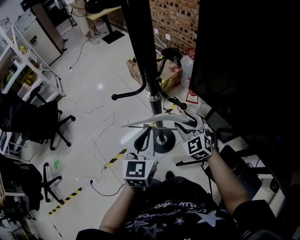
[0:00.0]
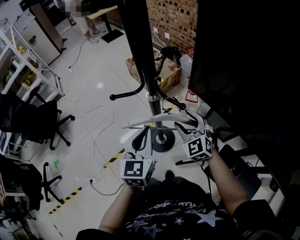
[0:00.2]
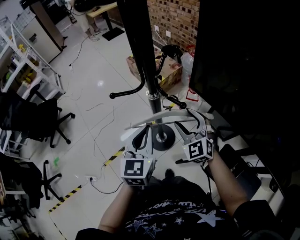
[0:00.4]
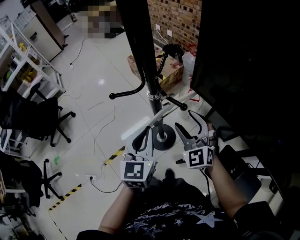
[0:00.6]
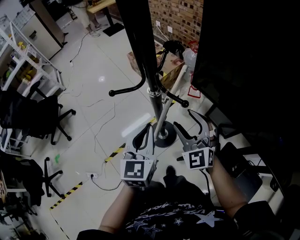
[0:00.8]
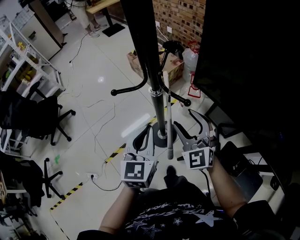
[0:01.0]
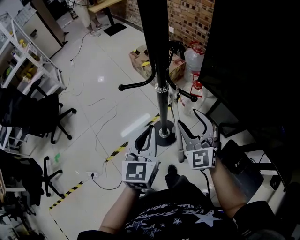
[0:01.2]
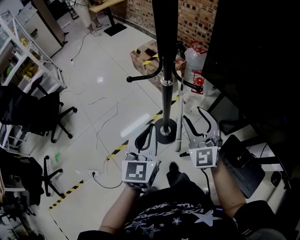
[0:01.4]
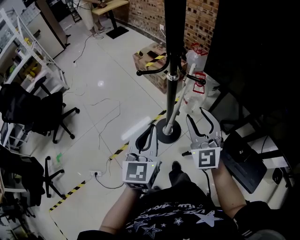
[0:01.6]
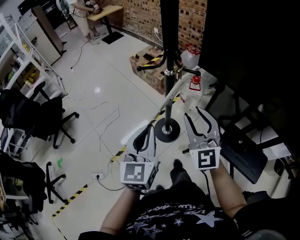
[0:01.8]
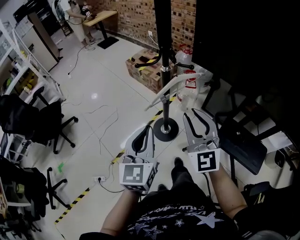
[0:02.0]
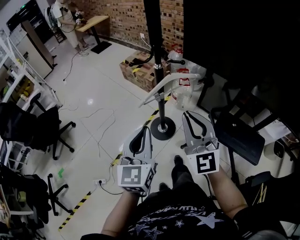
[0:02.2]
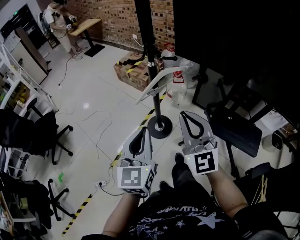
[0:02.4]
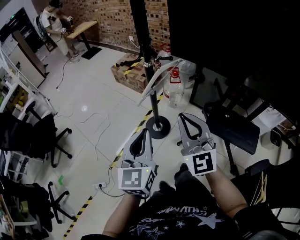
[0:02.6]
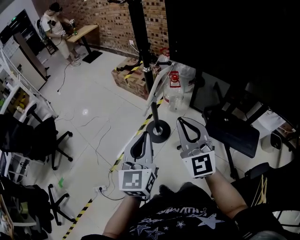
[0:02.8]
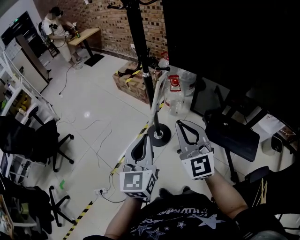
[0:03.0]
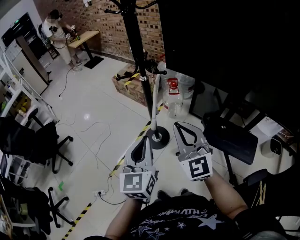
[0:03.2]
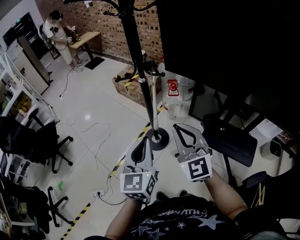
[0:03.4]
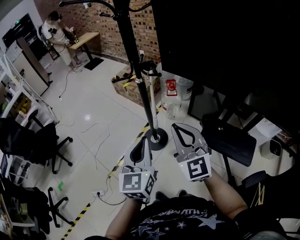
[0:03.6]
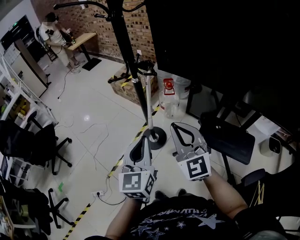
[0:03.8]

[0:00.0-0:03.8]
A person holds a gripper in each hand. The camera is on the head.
0.0 to 1.2 s: The right gripper shifts some 10 cm upward and backward.
1.2 to 2.6 s: The right gripper moves backward and upward, some 25 cm, swivels approximately 20 degrees, and closes. The left gripper is displaced backward by about 20 cm.
2.6 to 3.8 s: The left gripper heads to the right, covering roughly 5 cm.

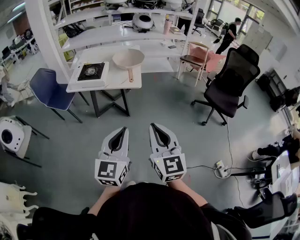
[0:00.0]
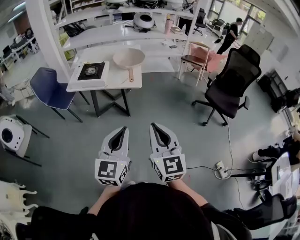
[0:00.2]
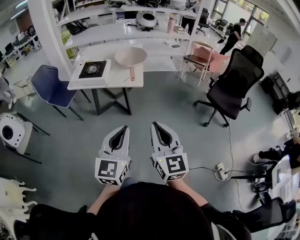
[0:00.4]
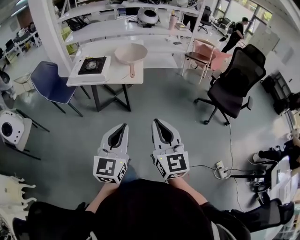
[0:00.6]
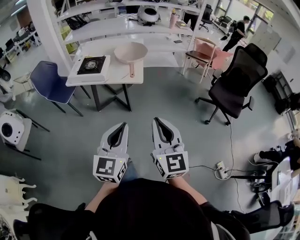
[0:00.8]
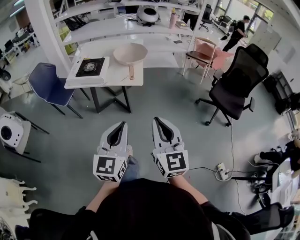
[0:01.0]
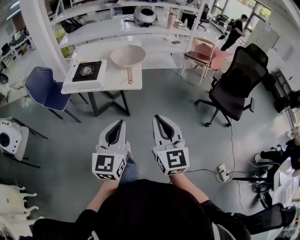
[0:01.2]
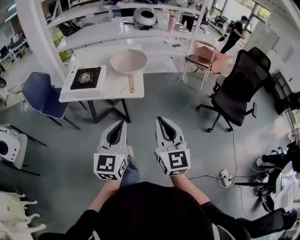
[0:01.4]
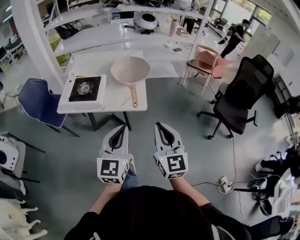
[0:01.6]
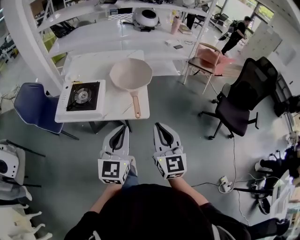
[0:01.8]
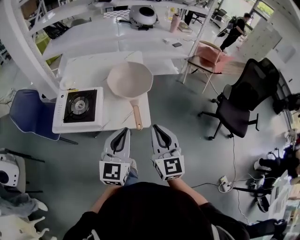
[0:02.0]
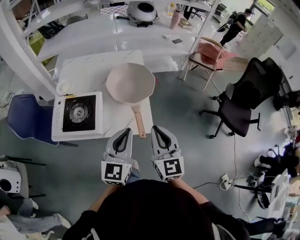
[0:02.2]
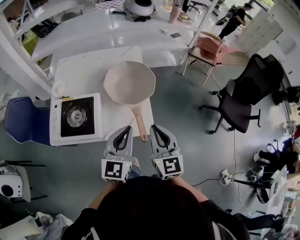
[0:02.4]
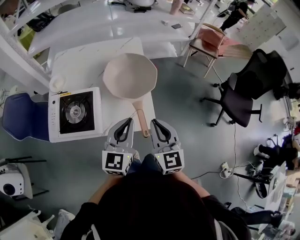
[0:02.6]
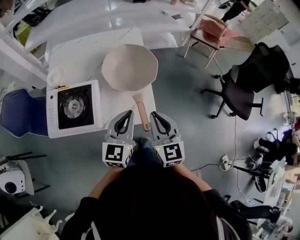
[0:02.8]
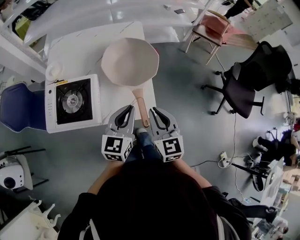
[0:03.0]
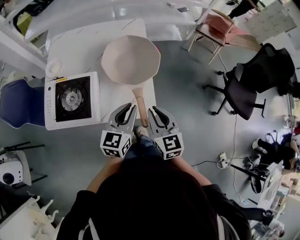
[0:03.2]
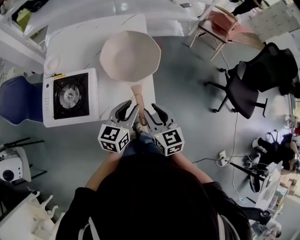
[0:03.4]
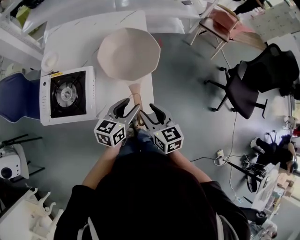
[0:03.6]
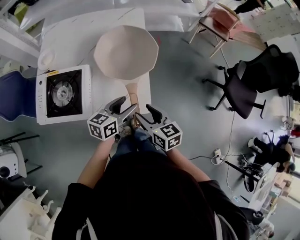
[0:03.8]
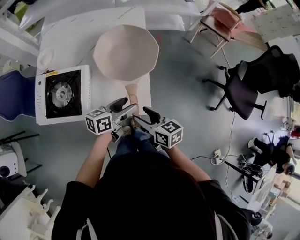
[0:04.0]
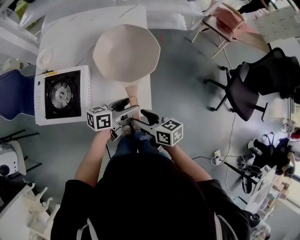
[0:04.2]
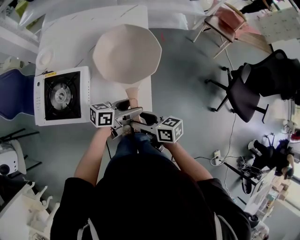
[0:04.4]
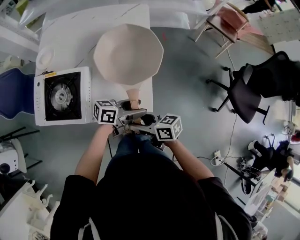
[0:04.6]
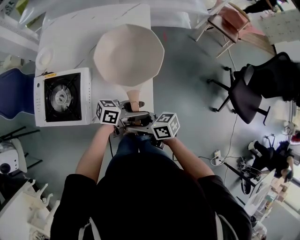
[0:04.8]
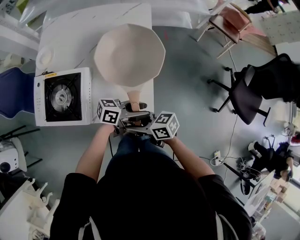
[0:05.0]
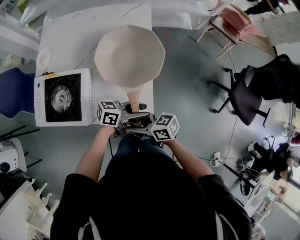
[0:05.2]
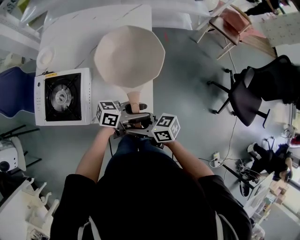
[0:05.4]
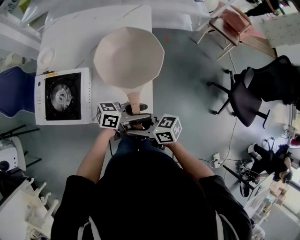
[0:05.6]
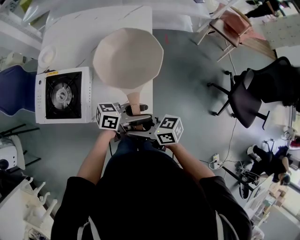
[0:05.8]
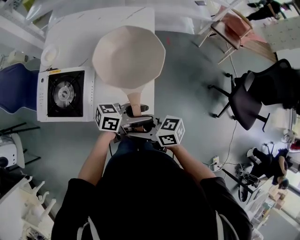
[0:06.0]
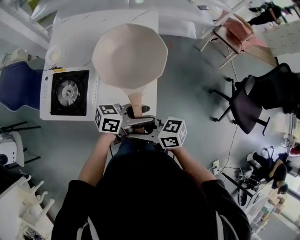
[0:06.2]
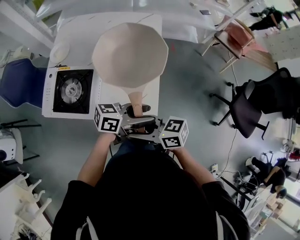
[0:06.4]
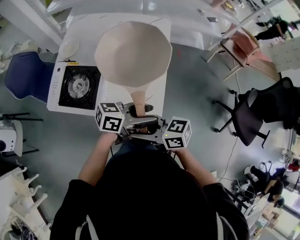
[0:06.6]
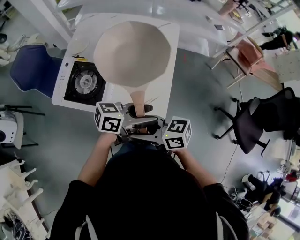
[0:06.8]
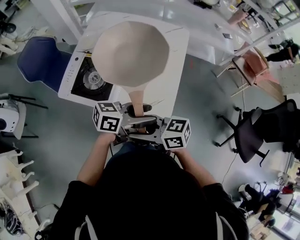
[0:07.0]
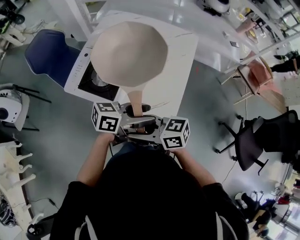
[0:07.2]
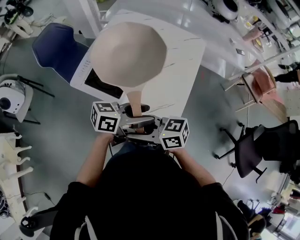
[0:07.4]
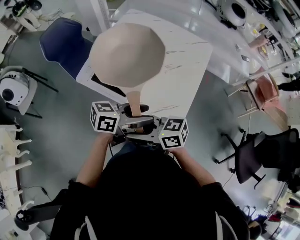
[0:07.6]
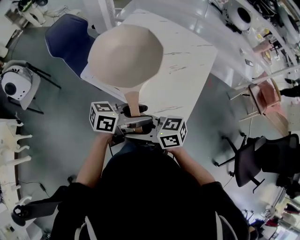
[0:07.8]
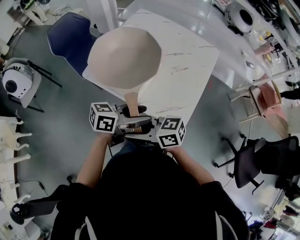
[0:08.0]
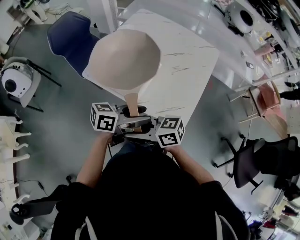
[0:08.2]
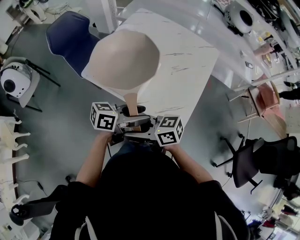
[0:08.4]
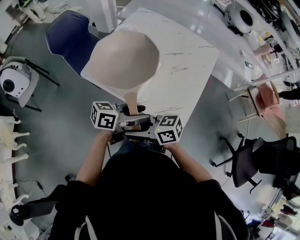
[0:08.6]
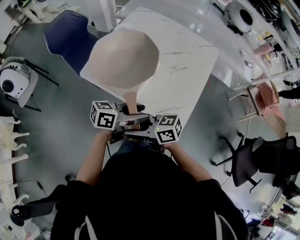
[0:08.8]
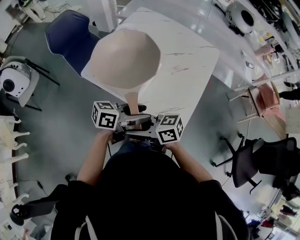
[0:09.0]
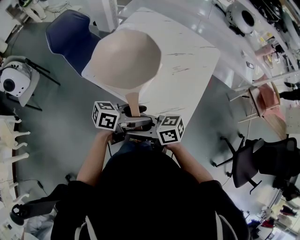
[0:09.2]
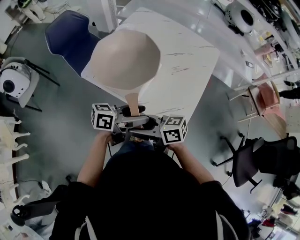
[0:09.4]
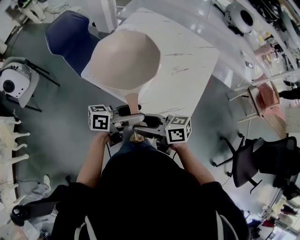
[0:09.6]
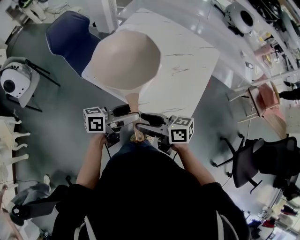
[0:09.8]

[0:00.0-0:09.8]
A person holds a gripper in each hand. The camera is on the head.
0.0 to 1.4 s: The grippers both shift forward by approximately 20 cm.
1.4 to 2.8 s: Both grippers move forward, some 35 cm.
2.8 to 4.2 s: The two grippers go approximately 15 cm downward. The left gripper rotates approximately 50 degrees, and opens up; the right gripper swivels some 50 degrees, and opens its fingers.
4.2 to 5.6 s: The left gripper moves roughly 5 cm, and swivels roughly 20 degrees. The right gripper rotates some 30 degrees.
5.6 to 7.0 s: The grippers both shift upward by about 10 cm.
7.0 to 8.4 s: The right gripper moves roughly 10 cm. Meanwhile the left gripper shifts by about 10 cm.
8.4 to 9.8 s: The left gripper ends up some 5 cm from where it was. The right gripper moves about 5 cm.

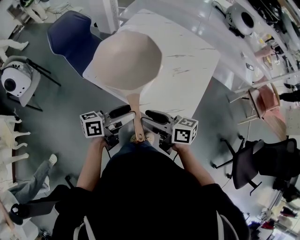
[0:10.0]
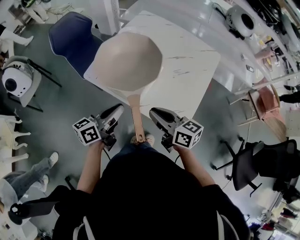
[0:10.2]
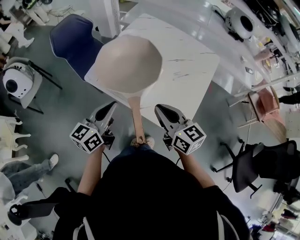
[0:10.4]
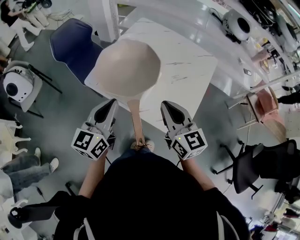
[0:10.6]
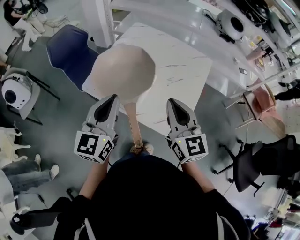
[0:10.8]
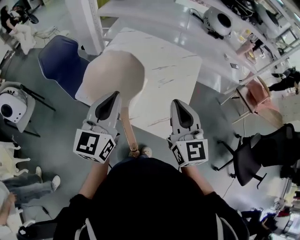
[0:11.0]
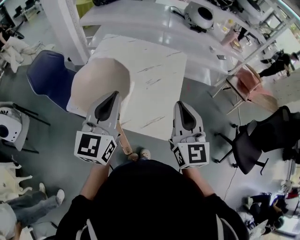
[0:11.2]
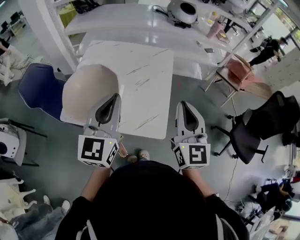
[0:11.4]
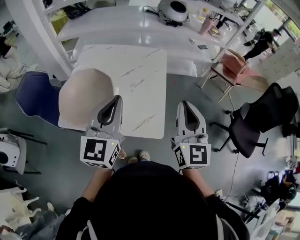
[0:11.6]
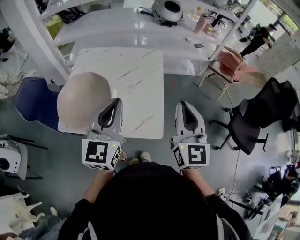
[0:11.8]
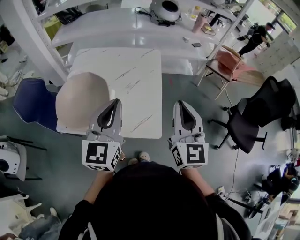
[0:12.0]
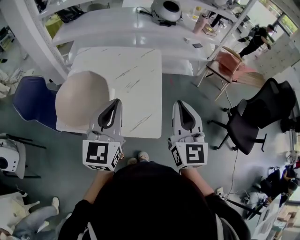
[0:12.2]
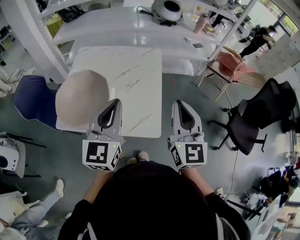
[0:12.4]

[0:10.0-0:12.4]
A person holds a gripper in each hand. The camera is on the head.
10.0 to 11.2 s: The left gripper heads upward, covering about 20 cm, rolls clockwise, seen from behind, by approximately 50 degrees, and closes up, while the right gripper shifts roughly 25 cm upward and to the right, swivels approximately 80 degrees, and closes its fingers.
11.2 to 12.4 s: Both grippers move to the right, some 10 cm.

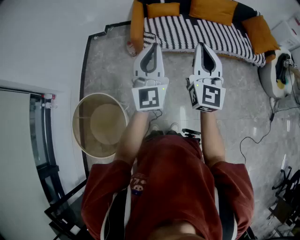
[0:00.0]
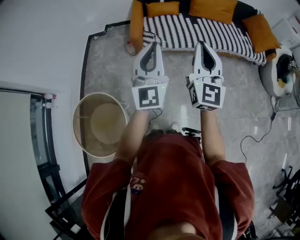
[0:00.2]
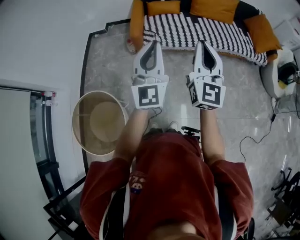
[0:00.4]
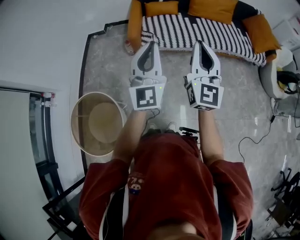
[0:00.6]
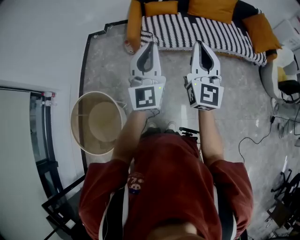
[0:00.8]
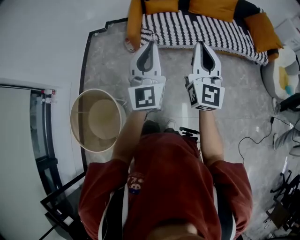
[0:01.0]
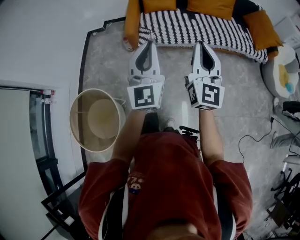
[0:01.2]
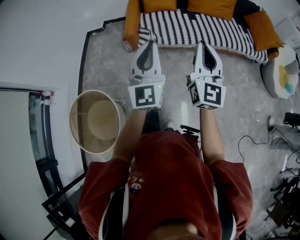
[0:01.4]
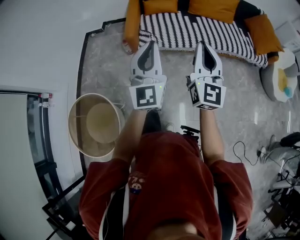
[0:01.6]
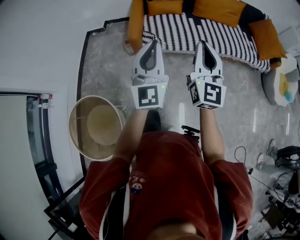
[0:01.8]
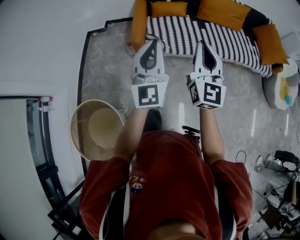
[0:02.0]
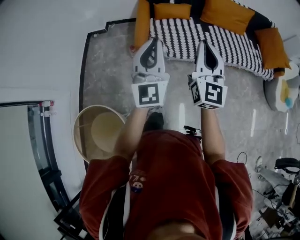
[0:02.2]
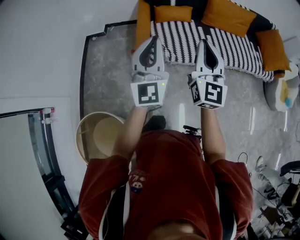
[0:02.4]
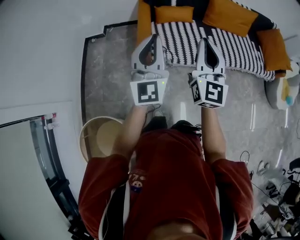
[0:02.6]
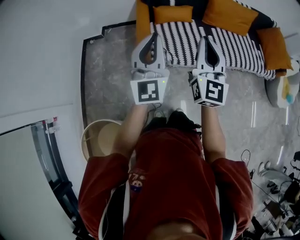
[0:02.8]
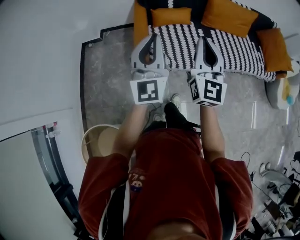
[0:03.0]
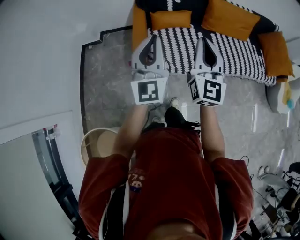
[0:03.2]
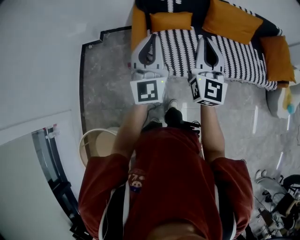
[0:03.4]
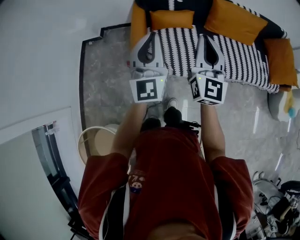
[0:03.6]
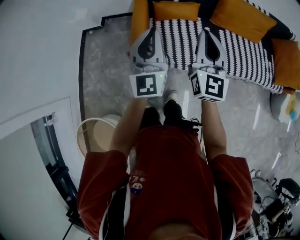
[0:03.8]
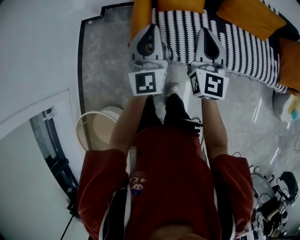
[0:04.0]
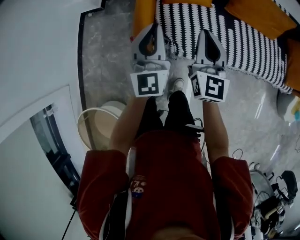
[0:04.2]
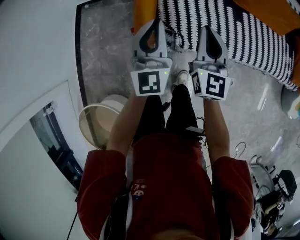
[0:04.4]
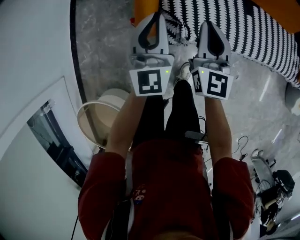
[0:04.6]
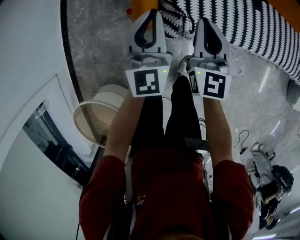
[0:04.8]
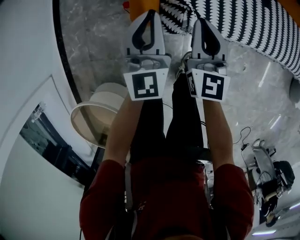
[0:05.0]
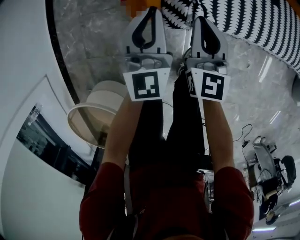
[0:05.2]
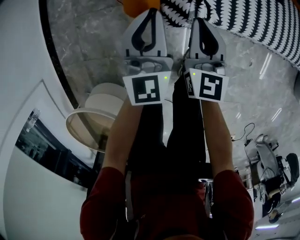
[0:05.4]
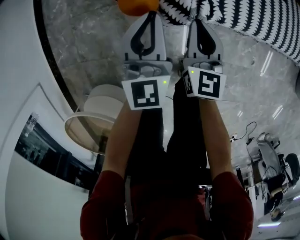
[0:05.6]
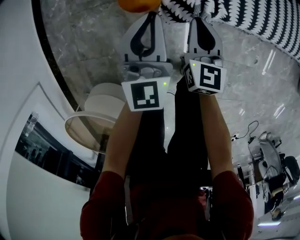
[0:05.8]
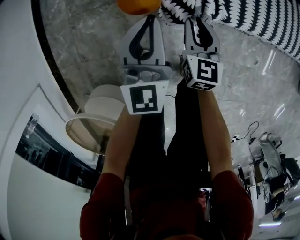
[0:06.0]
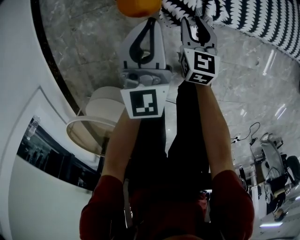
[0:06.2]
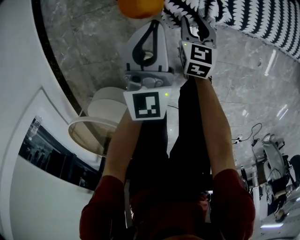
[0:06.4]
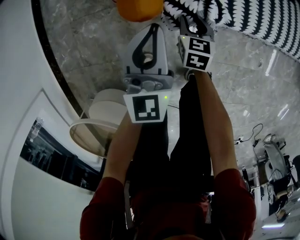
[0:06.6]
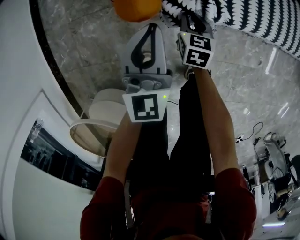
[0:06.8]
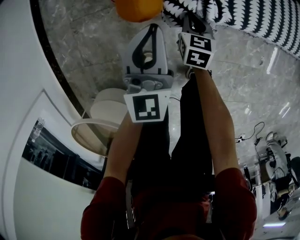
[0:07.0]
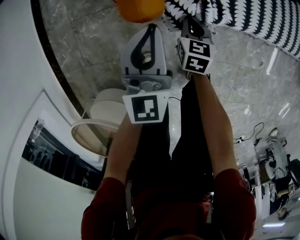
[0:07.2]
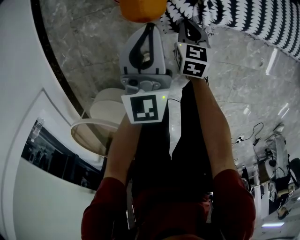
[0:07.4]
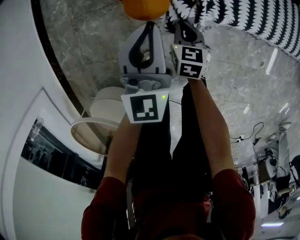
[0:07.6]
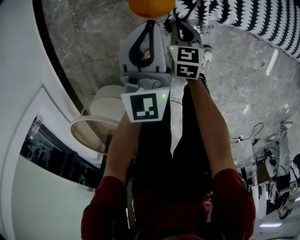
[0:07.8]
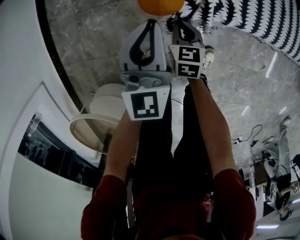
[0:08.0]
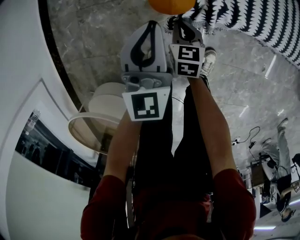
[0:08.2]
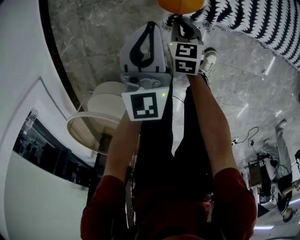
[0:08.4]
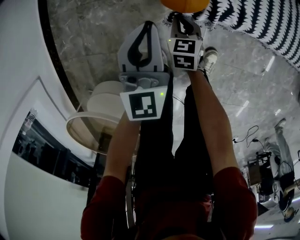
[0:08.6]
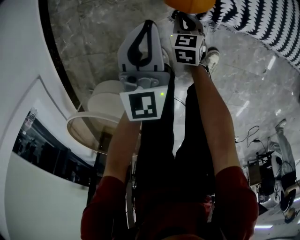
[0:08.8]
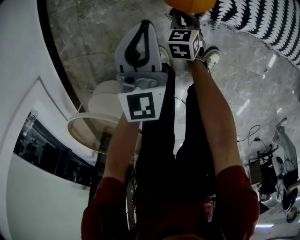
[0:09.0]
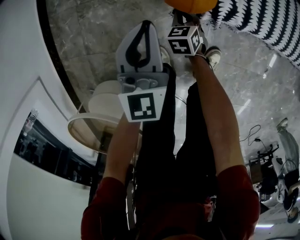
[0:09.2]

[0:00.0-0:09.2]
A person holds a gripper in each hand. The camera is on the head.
0.0 to 1.6 s: The right gripper moves to the right and forward, roughly 10 cm. Meanwhile the left gripper moves forward, about 5 cm.
1.6 to 3.0 s: Both grippers move forward and to the left, about 35 cm.
3.0 to 4.6 s: Both grippers move downward and forward, roughly 30 cm. The right gripper changes its angle by about 20 degrees.
4.6 to 6.2 s: Both grippers travel together downward, approximately 35 cm. The right gripper changes its angle by some 30 degrees, and opens.
6.2 to 7.6 s: The right gripper moves downward, roughly 5 cm, and closes.
7.6 to 9.2 s: The right gripper goes roughly 10 cm downward and to the left, and changes its angle by roughly 30 degrees; the left gripper shifts some 10 cm to the left.
